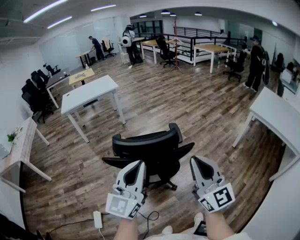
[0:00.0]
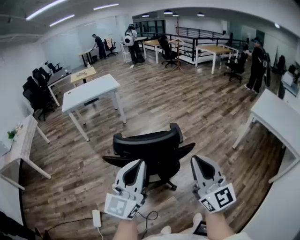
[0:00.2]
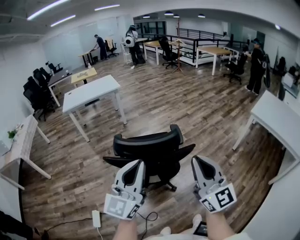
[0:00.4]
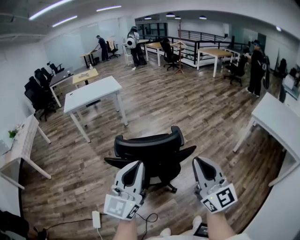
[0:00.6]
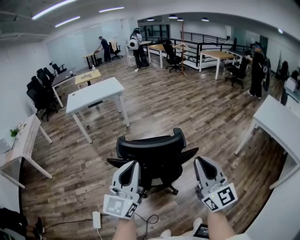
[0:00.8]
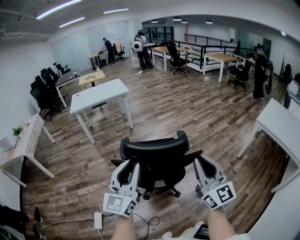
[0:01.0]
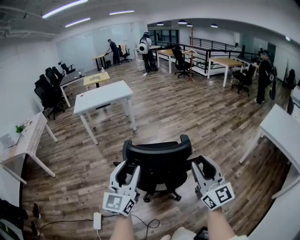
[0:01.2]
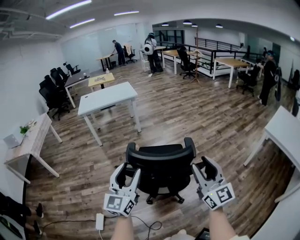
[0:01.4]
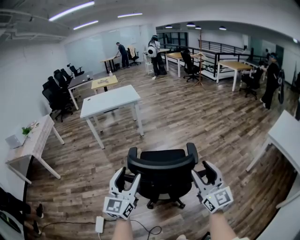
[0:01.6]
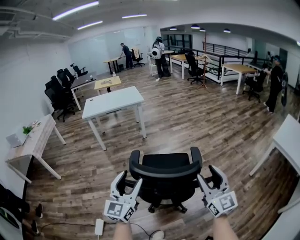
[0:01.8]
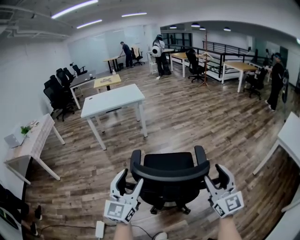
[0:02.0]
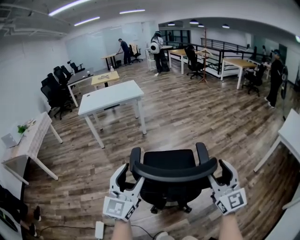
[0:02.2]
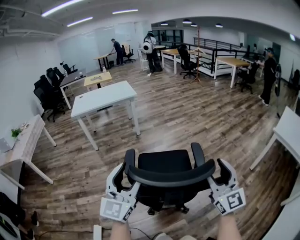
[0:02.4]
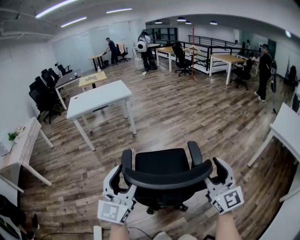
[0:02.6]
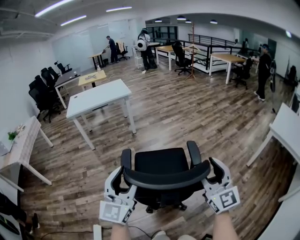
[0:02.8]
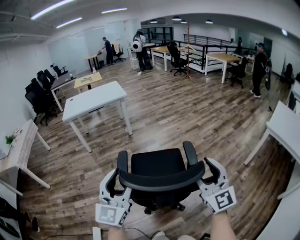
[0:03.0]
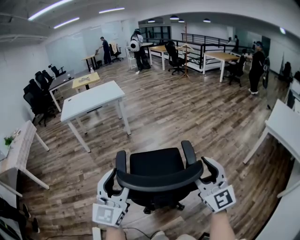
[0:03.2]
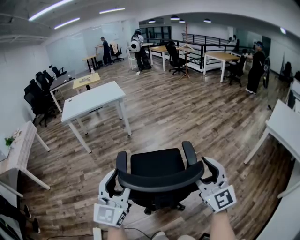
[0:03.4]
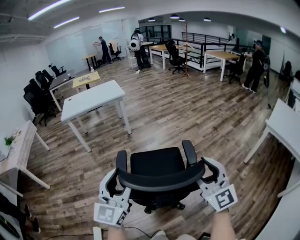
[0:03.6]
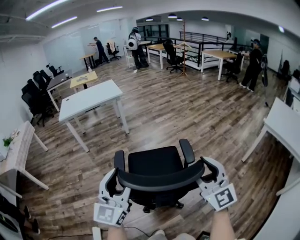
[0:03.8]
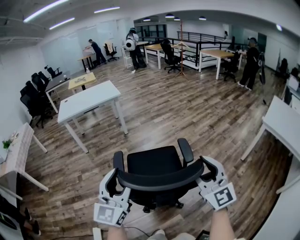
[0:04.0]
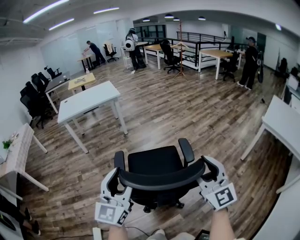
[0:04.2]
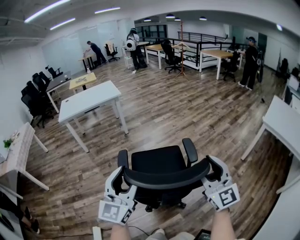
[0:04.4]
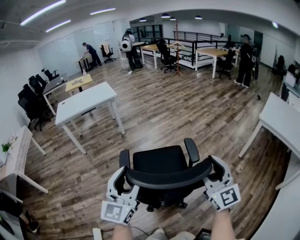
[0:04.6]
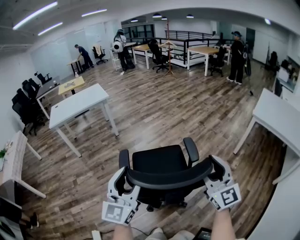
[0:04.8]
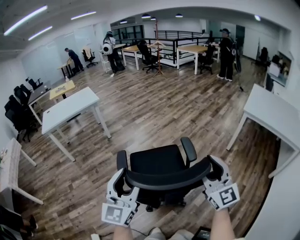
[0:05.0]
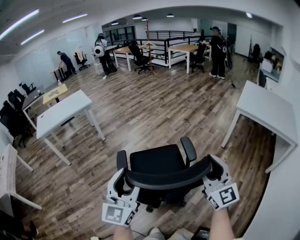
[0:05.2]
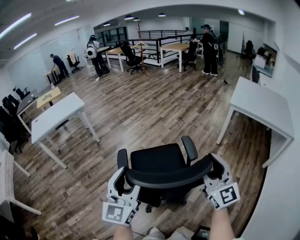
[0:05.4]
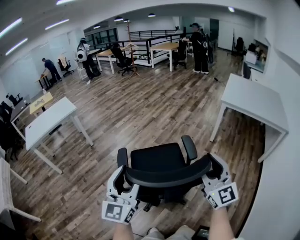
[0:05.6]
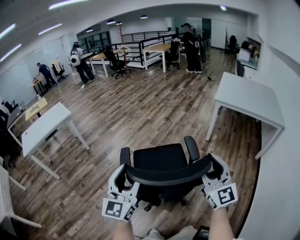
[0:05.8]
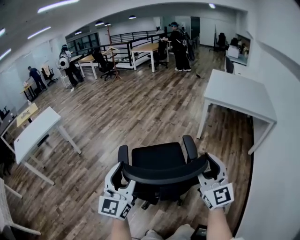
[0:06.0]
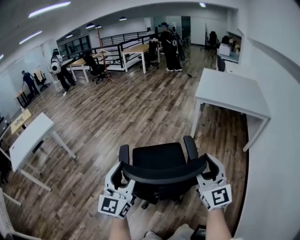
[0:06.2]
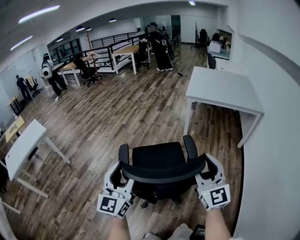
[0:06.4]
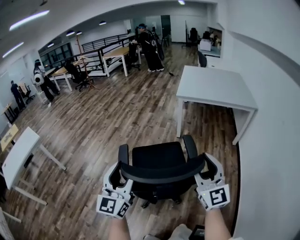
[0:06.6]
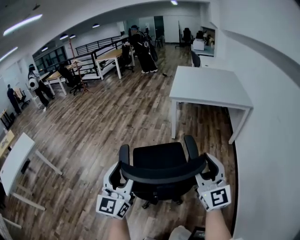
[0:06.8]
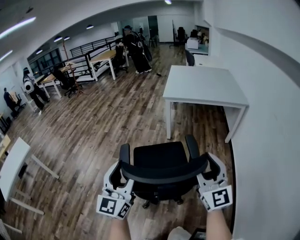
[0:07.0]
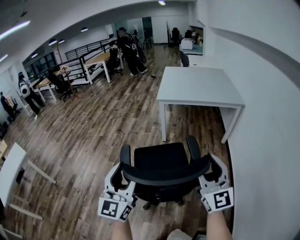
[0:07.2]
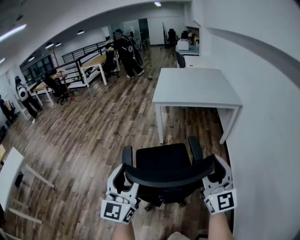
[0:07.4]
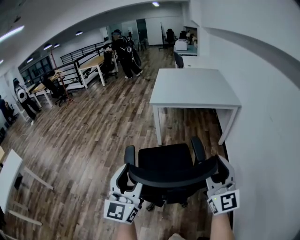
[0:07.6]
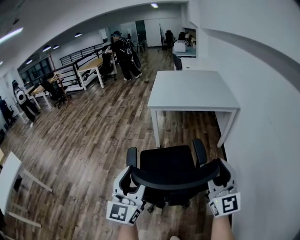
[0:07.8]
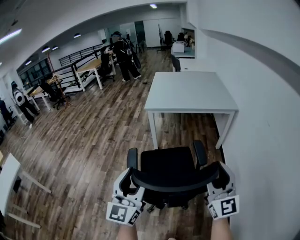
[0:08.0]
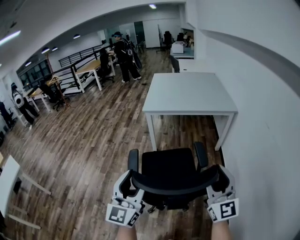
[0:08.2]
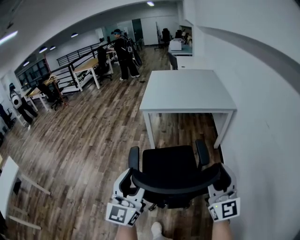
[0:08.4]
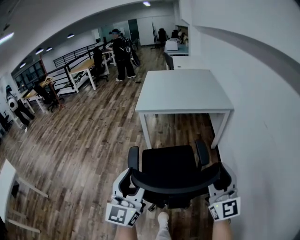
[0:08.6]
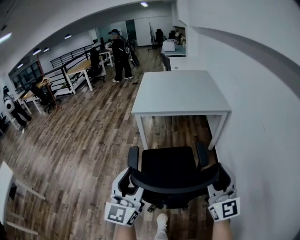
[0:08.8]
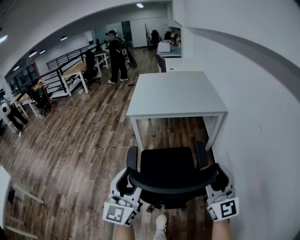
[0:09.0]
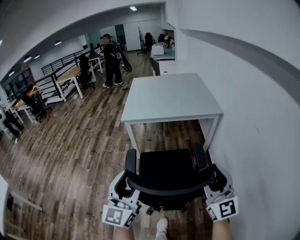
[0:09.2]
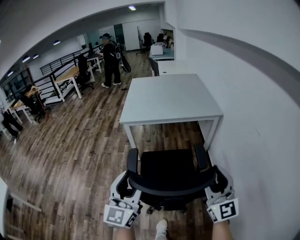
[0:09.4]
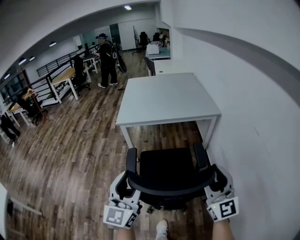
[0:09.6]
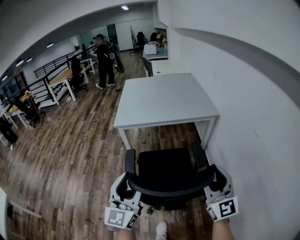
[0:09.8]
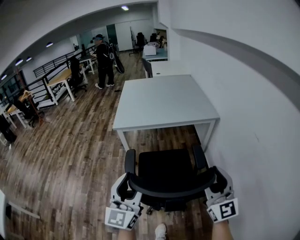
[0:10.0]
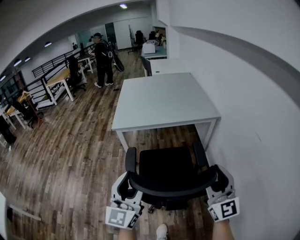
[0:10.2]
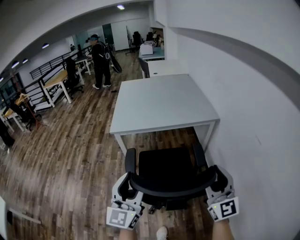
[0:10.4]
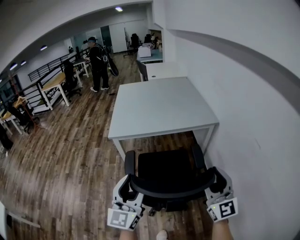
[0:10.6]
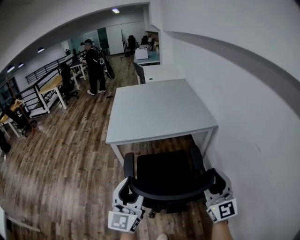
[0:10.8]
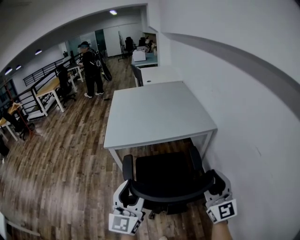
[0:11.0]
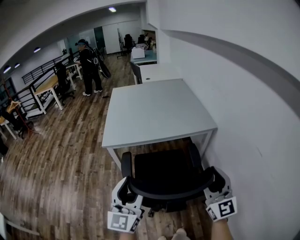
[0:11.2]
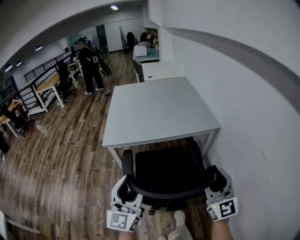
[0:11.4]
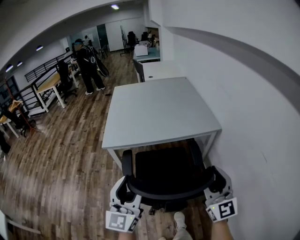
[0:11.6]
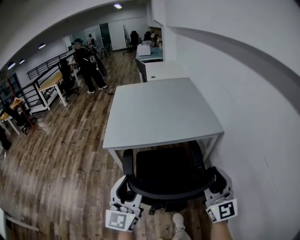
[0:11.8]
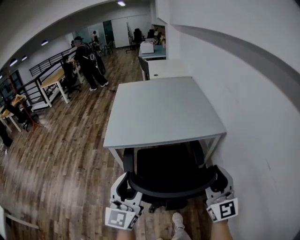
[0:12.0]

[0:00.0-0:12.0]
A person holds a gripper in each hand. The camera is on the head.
0.0 to 1.6 s: The right gripper travels forward by approximately 10 cm, and opens up. Meanwhile the left gripper travels to the left and forward by roughly 10 cm, and opens its fingers.
1.6 to 3.0 s: The grippers both shift forward by some 10 cm.
3.0 to 4.4 s: The grippers make only small movements.
4.4 to 6.0 s: The right gripper shifts by approximately 25 cm, and turns by approximately 30 degrees. Meanwhile the left gripper shifts by approximately 25 cm, and swivels roughly 30 degrees.
6.0 to 7.6 s: The left gripper shifts approximately 30 cm to the right and forward, and turns by about 20 degrees. Meanwhile the right gripper moves to the right, roughly 25 cm, and swivels approximately 30 degrees.
7.6 to 9.0 s: The right gripper shifts roughly 15 cm to the right and forward. Meanwhile the left gripper heads forward and to the right, covering about 15 cm.
9.0 to 10.4 s: Both grippers travel together forward, roughly 15 cm.
10.4 to 12.0 s: The grippers both shift forward by about 15 cm.

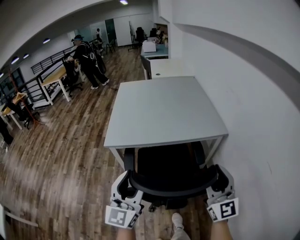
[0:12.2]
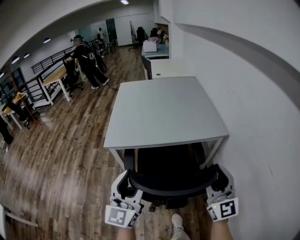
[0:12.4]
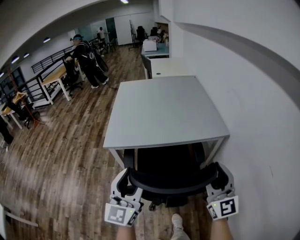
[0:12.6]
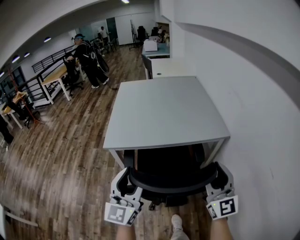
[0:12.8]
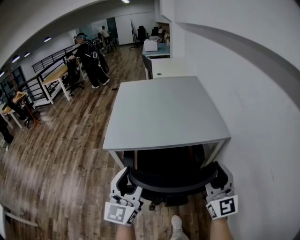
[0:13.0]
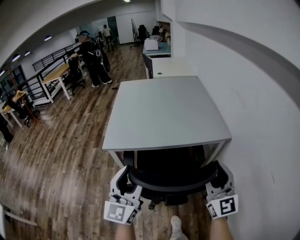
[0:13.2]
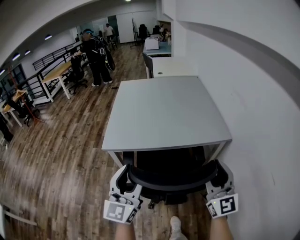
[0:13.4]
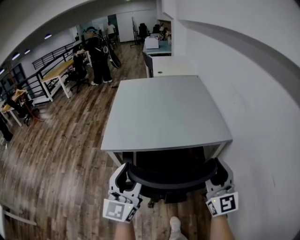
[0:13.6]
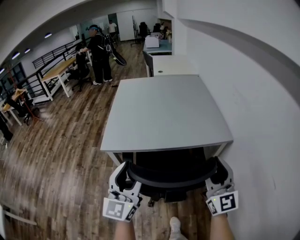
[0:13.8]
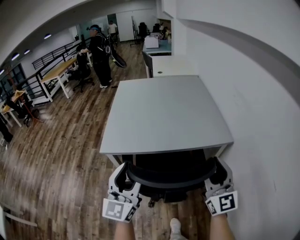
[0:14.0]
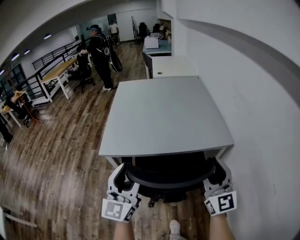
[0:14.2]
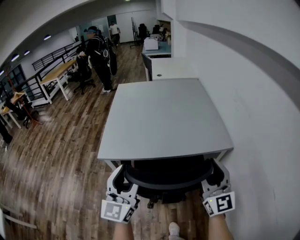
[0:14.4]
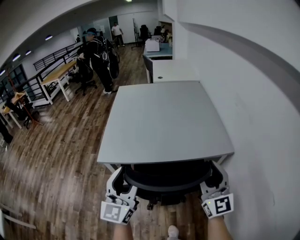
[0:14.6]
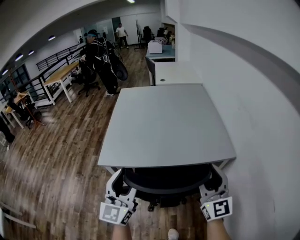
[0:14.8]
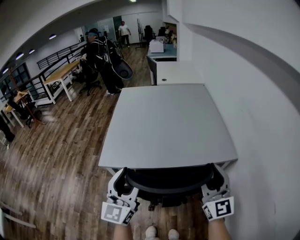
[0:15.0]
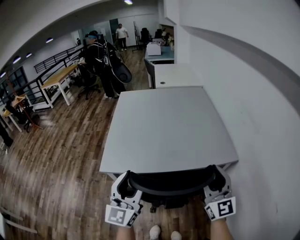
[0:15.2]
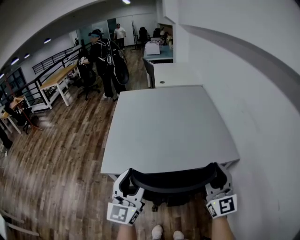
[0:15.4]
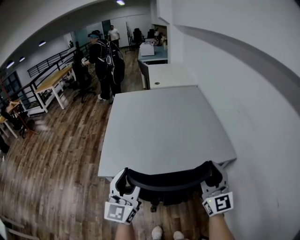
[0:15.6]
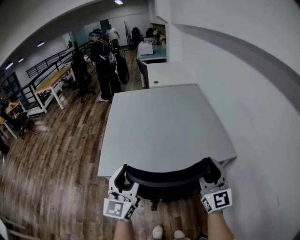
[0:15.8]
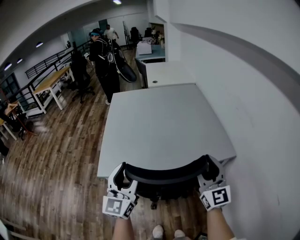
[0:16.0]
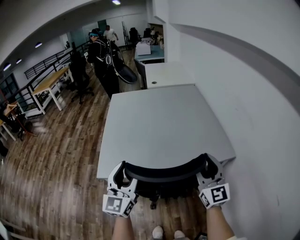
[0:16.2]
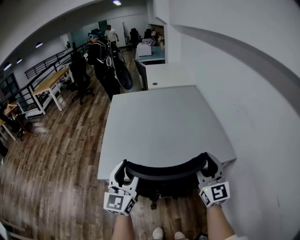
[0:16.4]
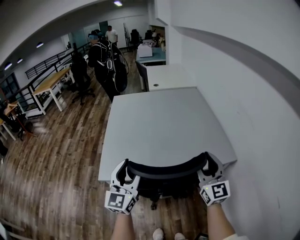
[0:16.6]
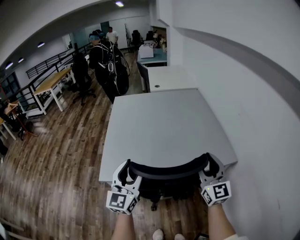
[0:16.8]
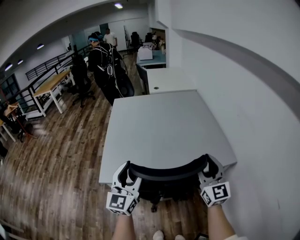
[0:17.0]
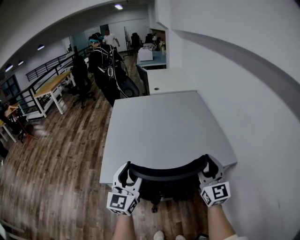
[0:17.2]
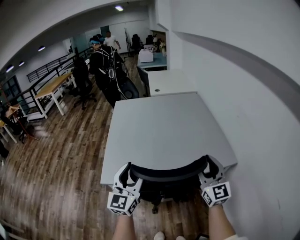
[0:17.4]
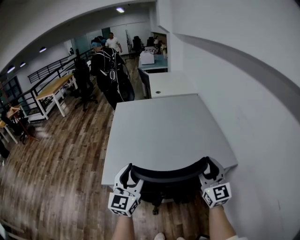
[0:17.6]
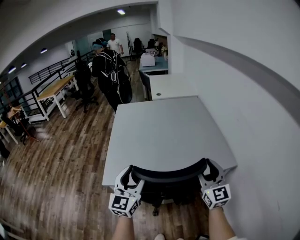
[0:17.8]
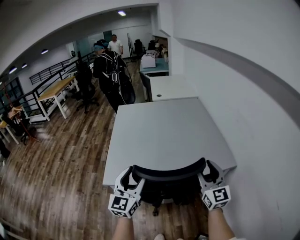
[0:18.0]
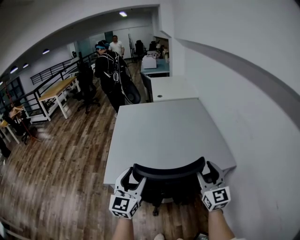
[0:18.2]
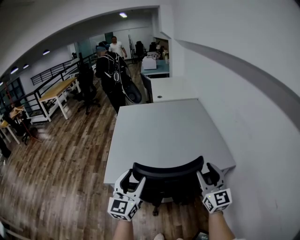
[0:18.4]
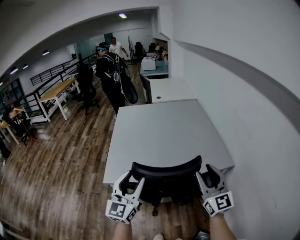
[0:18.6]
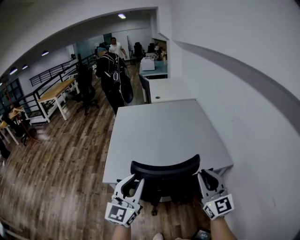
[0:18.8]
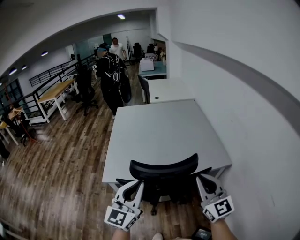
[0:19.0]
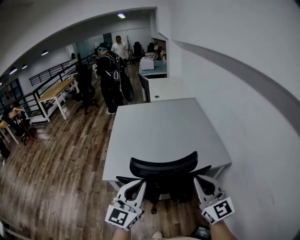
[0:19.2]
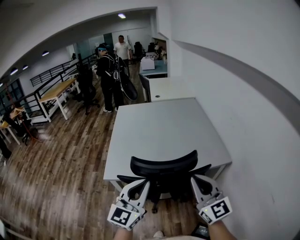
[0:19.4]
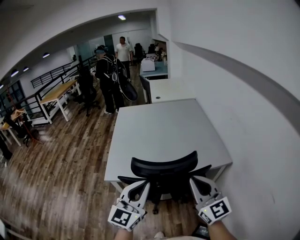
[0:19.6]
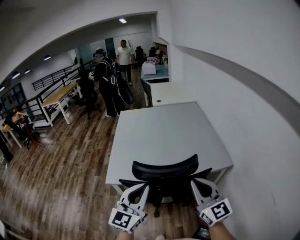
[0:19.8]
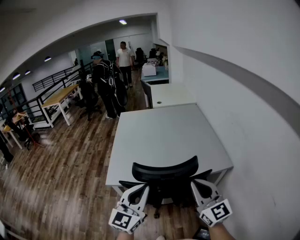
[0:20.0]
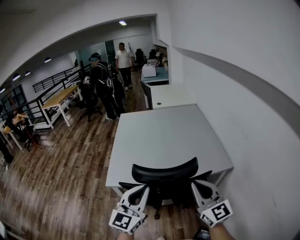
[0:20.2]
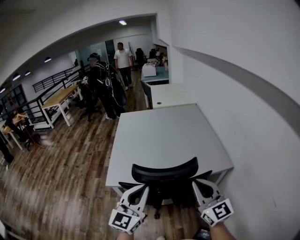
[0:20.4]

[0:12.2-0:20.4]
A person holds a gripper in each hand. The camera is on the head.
12.2 to 13.8 s: Both grippers travel together forward, about 10 cm.
13.8 to 15.4 s: Both grippers travel together forward, roughly 15 cm.
15.4 to 17.2 s: Both grippers move forward, some 5 cm.
17.2 to 18.8 s: The two grippers go approximately 10 cm backward. The right gripper closes its fingers. The left gripper closes.
18.8 to 20.4 s: The left gripper closes up.

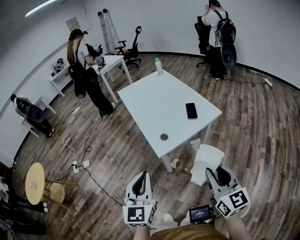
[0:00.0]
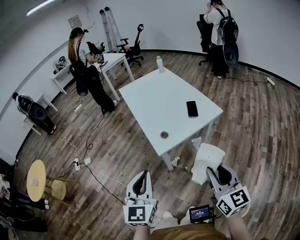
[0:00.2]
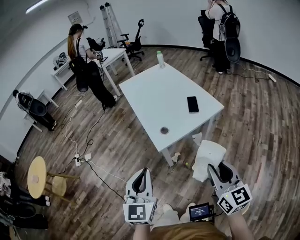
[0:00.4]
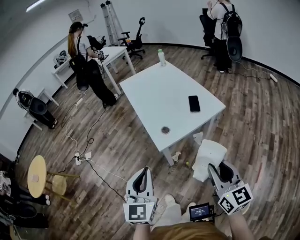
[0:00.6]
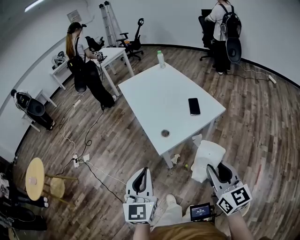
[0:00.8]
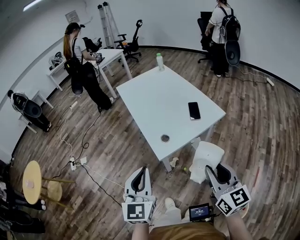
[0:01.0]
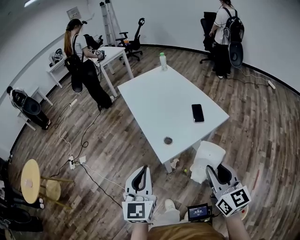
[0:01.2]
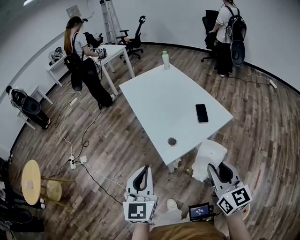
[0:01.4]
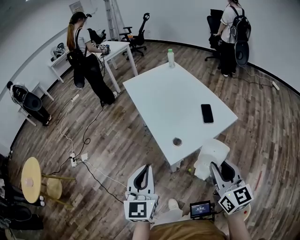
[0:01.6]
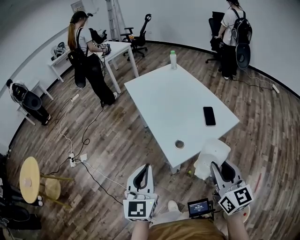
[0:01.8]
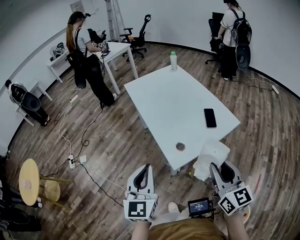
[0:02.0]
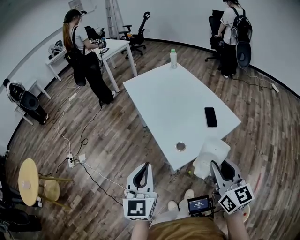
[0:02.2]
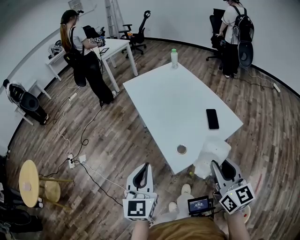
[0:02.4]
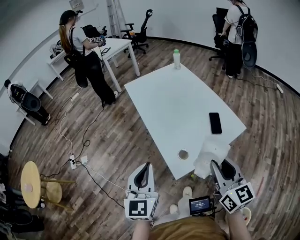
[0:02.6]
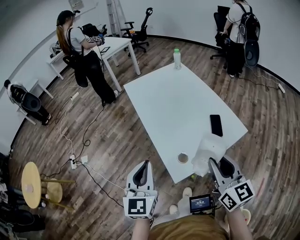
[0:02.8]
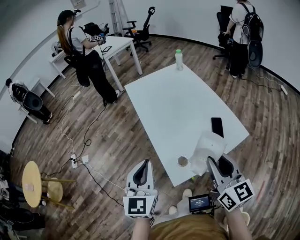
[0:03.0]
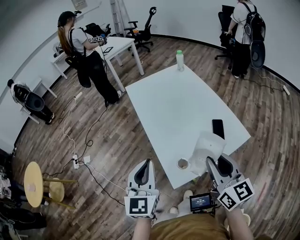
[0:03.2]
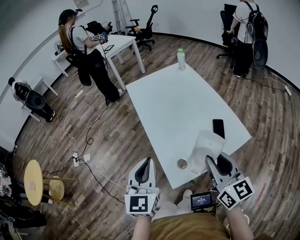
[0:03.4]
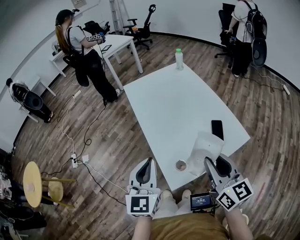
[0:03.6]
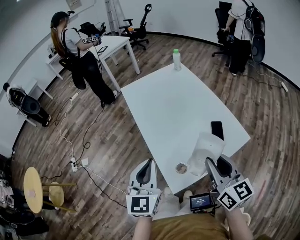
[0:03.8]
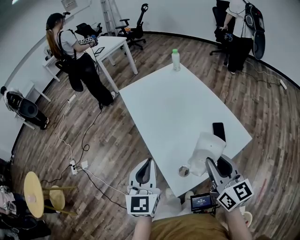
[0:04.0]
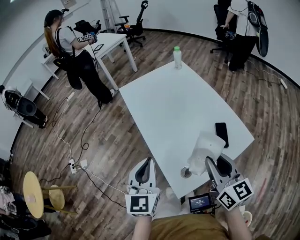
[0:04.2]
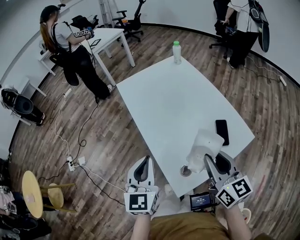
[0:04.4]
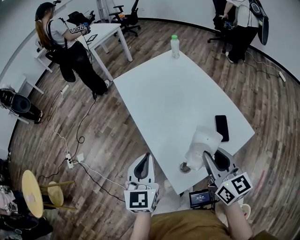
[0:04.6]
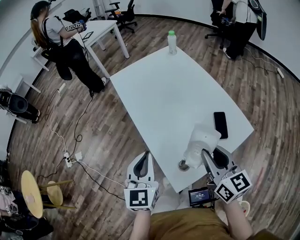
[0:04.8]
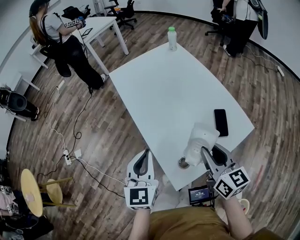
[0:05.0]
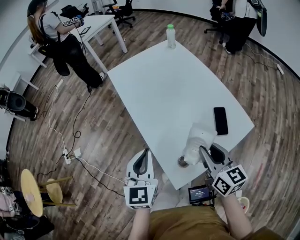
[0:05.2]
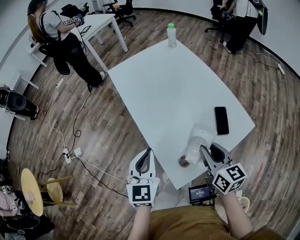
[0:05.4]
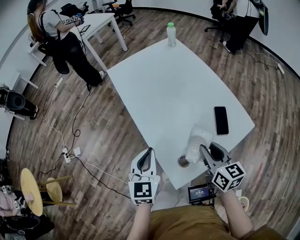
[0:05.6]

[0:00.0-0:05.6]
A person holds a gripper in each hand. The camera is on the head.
0.0 to 1.4 s: Both grippers move forward, approximately 10 cm.
1.4 to 2.8 s: The grippers both shift forward by roughly 15 cm.
2.8 to 4.2 s: Both grippers move forward, about 10 cm.
4.2 to 5.6 s: The two grippers go approximately 10 cm downward.
